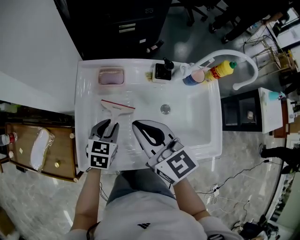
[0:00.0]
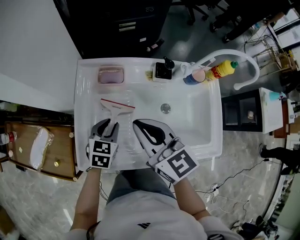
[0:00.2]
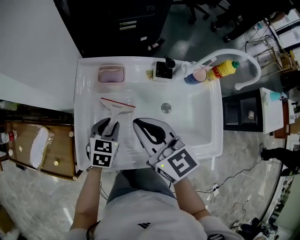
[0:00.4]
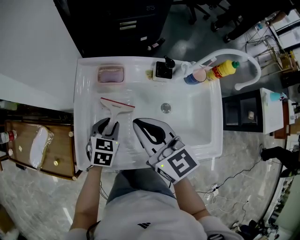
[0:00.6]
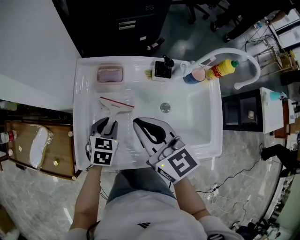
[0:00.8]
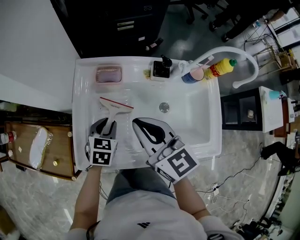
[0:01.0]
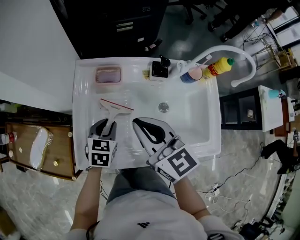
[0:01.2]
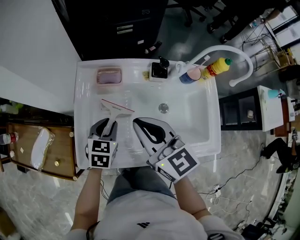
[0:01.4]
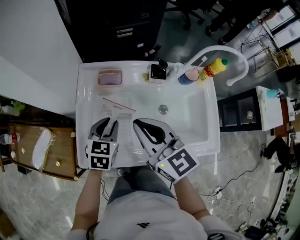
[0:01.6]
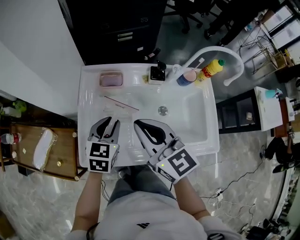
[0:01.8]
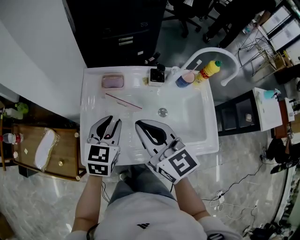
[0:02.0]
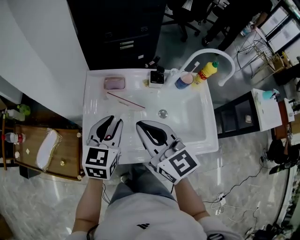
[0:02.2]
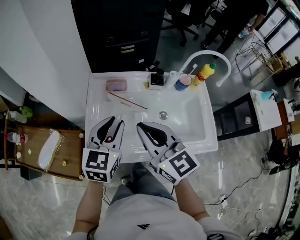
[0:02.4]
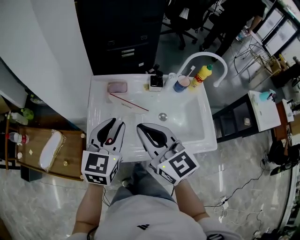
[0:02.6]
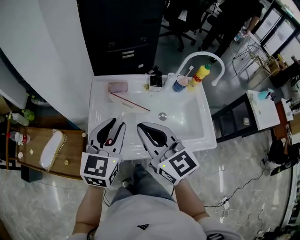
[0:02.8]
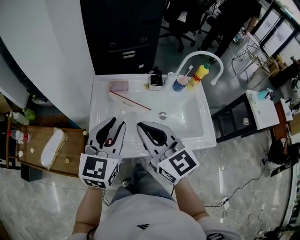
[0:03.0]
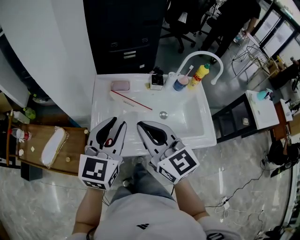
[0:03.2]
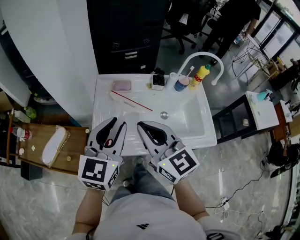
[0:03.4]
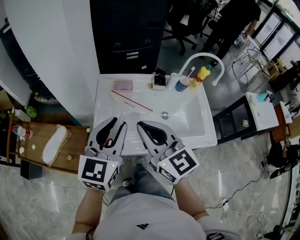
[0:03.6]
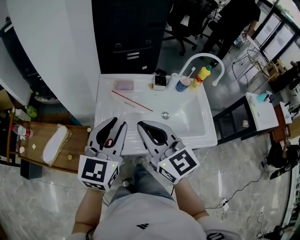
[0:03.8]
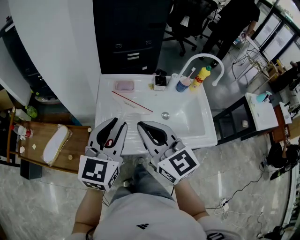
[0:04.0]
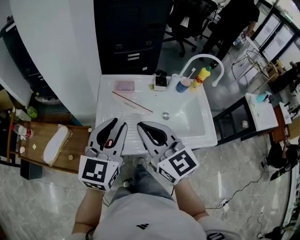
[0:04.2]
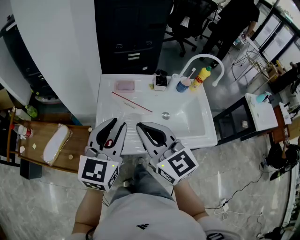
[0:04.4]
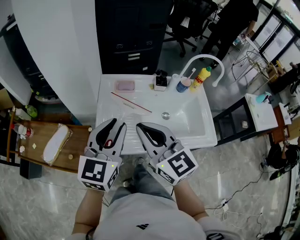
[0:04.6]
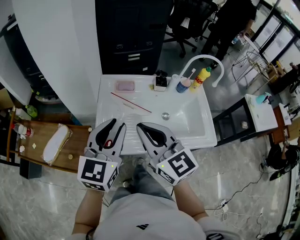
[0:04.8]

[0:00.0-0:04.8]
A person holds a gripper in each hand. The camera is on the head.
0.0 to 1.6 s: The grippers stay close to where they were, moving slightly.
1.6 to 3.2 s: The left gripper moves upward and backward, about 25 cm, and swivels roughly 30 degrees. Meanwhile the right gripper travels backward and upward by about 10 cm.
3.2 to 4.8 s: The grippers make only small movements.

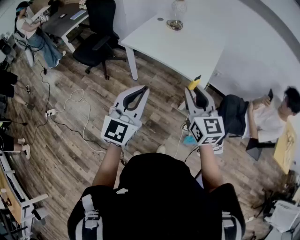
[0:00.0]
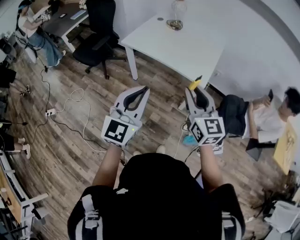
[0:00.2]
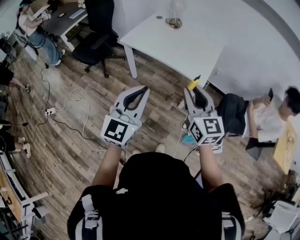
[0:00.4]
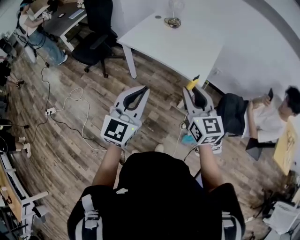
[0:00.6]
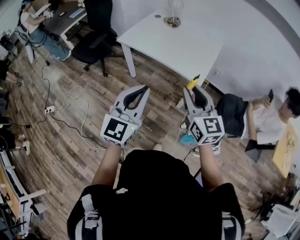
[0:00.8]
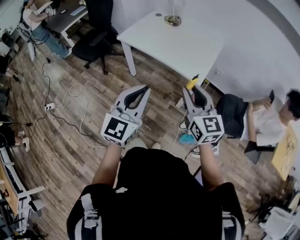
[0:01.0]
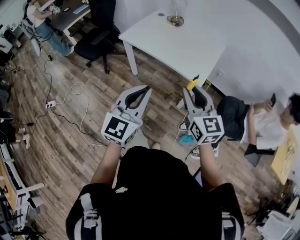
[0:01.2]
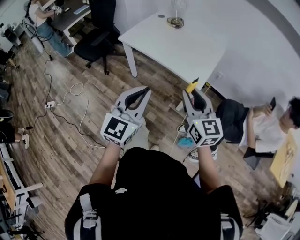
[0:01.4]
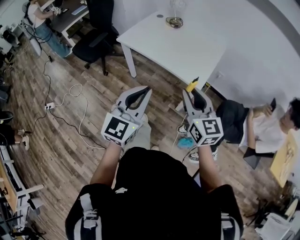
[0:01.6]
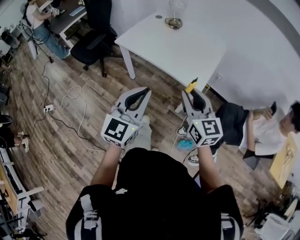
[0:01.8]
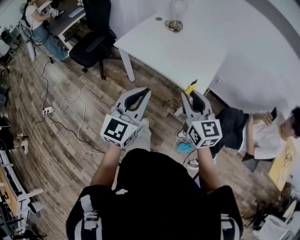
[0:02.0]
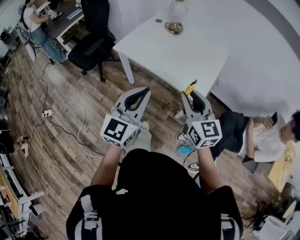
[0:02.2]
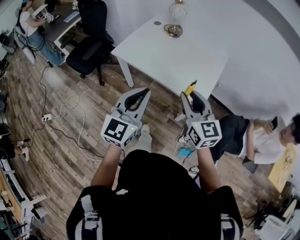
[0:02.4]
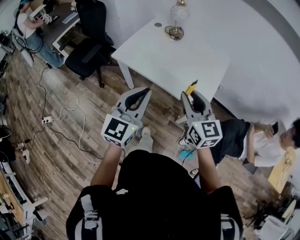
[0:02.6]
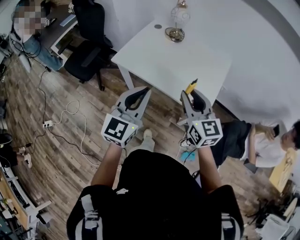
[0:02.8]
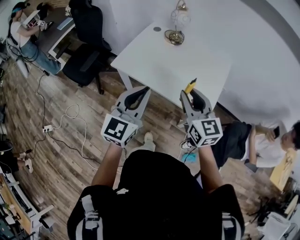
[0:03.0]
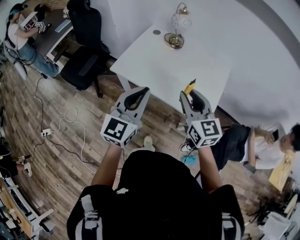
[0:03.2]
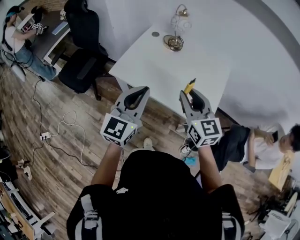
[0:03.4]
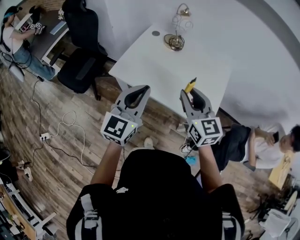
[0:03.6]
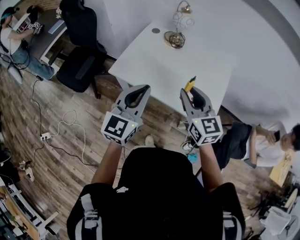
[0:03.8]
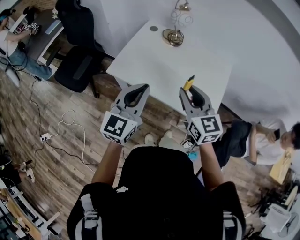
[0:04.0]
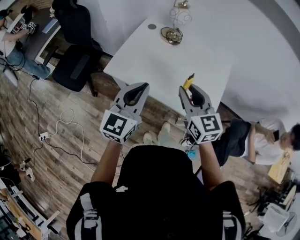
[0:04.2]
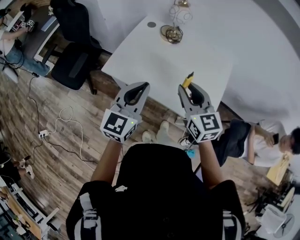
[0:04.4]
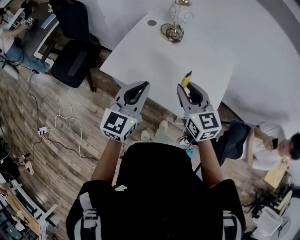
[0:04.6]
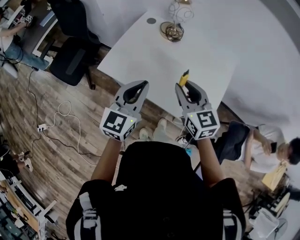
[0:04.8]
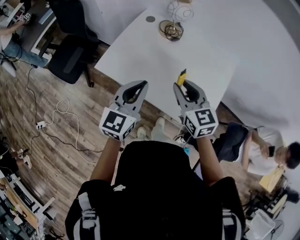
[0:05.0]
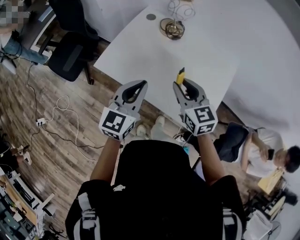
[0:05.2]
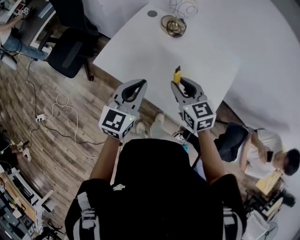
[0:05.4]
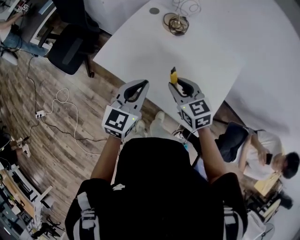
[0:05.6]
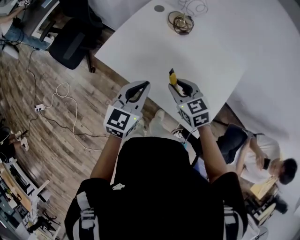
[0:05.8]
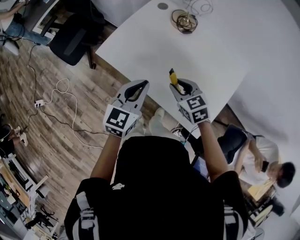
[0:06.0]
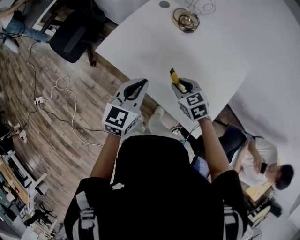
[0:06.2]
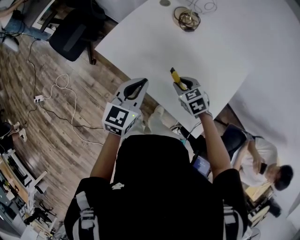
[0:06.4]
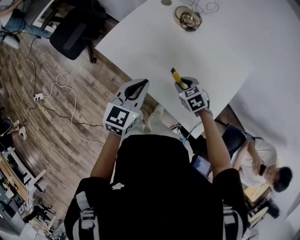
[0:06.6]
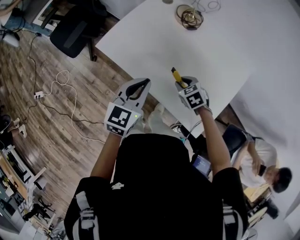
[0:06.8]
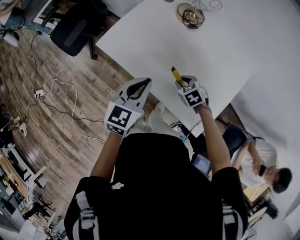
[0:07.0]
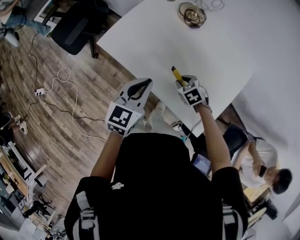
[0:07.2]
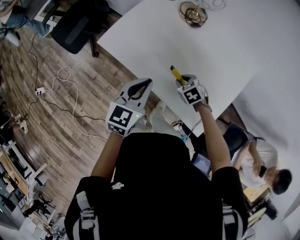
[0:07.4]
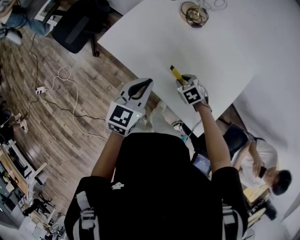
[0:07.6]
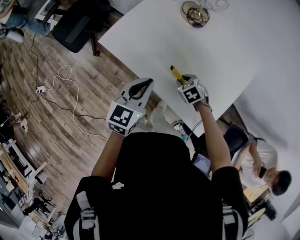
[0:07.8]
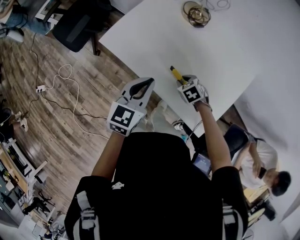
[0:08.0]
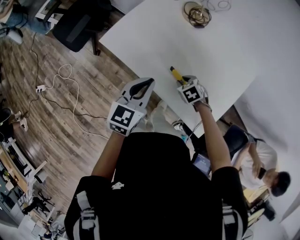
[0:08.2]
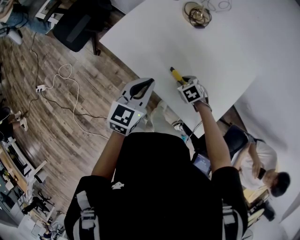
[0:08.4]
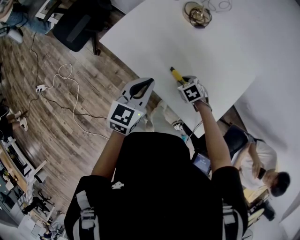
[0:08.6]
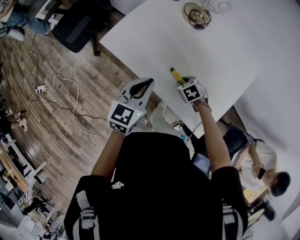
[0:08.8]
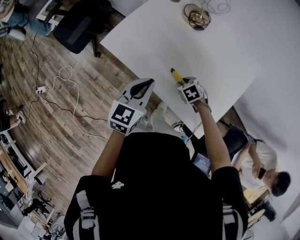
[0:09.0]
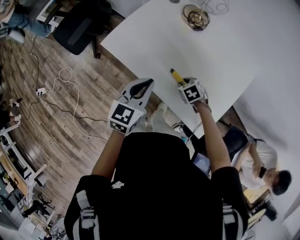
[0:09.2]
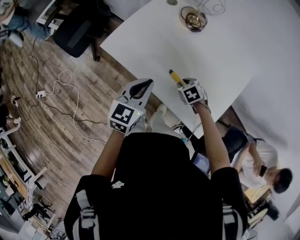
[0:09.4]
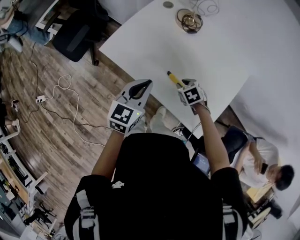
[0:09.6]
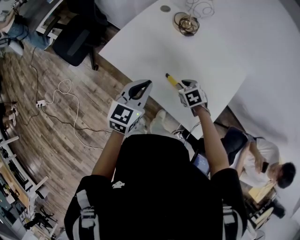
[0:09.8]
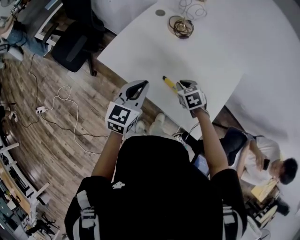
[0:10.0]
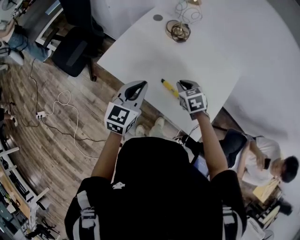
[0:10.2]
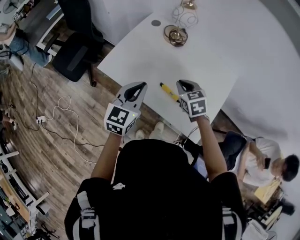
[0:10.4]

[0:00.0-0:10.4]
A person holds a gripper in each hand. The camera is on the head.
0.0 to 1.4 s: Both grippers travel together to the right, approximately 5 cm.
1.4 to 3.0 s: The two grippers go some 25 cm forward.
3.0 to 4.4 s: The two grippers go approximately 10 cm forward.
4.4 to 6.0 s: The left gripper travels downward and forward by some 10 cm, while the right gripper moves downward and forward, approximately 20 cm, and swivels roughly 40 degrees.
6.0 to 7.4 s: The right gripper heads downward, covering some 15 cm, and turns by some 20 degrees.
7.4 to 9.0 s: The grippers make only small movements.
9.0 to 10.4 s: The right gripper goes some 20 cm upward, rotates some 30 degrees, and closes up, while the left gripper moves upward, approximately 5 cm.

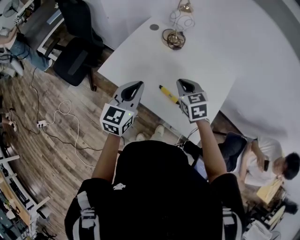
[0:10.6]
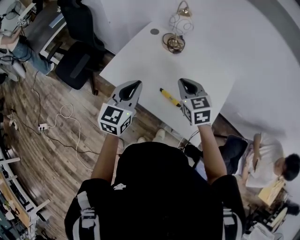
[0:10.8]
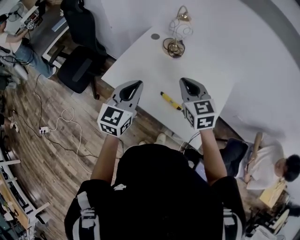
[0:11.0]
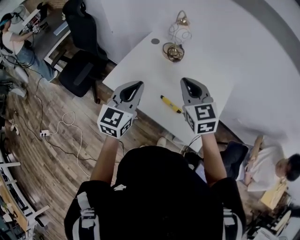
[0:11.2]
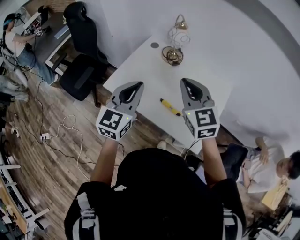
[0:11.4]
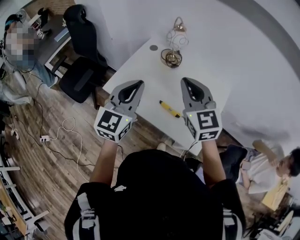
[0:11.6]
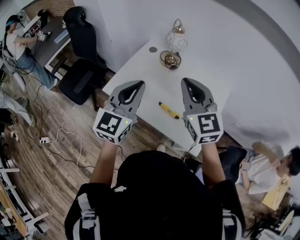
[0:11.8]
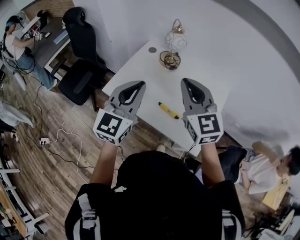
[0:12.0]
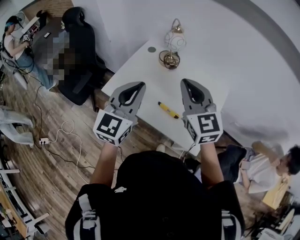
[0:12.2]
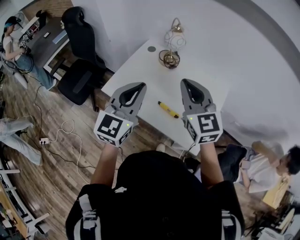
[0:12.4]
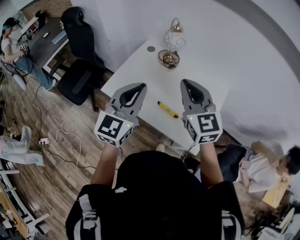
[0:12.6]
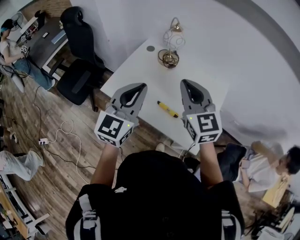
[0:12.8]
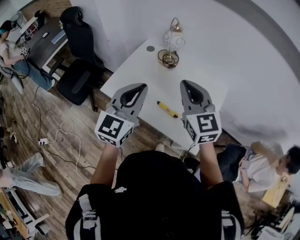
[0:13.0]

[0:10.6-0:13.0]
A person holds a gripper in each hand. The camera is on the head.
10.6 to 11.8 s: The left gripper shifts approximately 15 cm upward. Meanwhile the right gripper is displaced upward by about 20 cm, and points its fingers roughly 30 degrees further upward.
11.8 to 13.0 s: The grippers make only small movements.

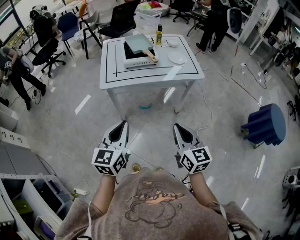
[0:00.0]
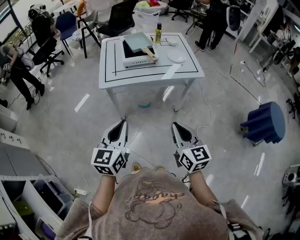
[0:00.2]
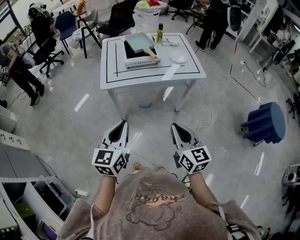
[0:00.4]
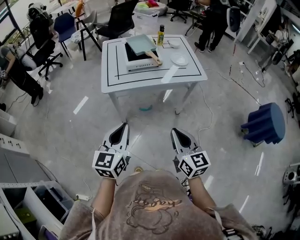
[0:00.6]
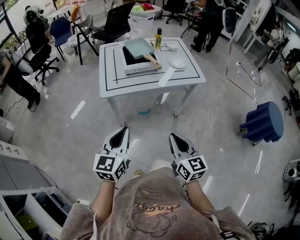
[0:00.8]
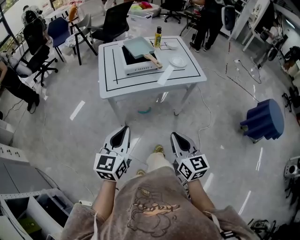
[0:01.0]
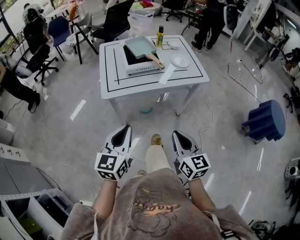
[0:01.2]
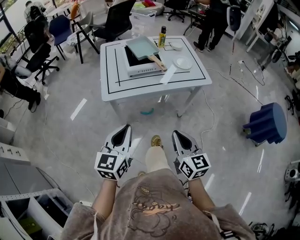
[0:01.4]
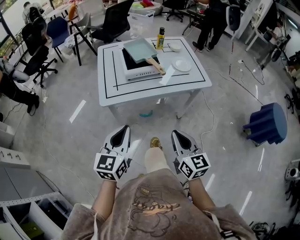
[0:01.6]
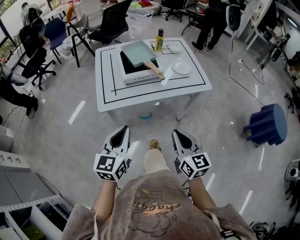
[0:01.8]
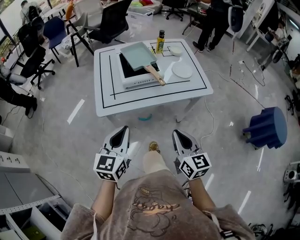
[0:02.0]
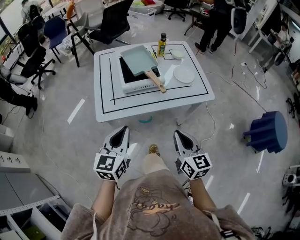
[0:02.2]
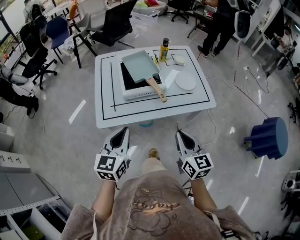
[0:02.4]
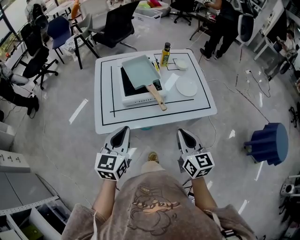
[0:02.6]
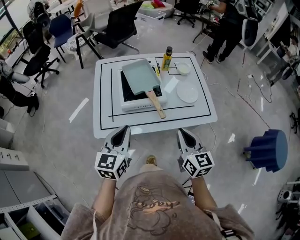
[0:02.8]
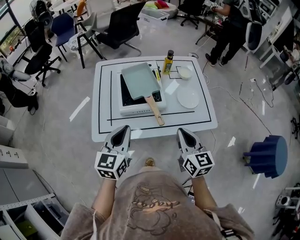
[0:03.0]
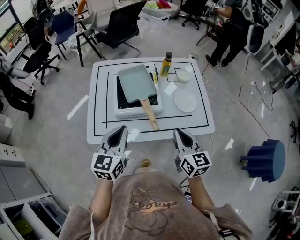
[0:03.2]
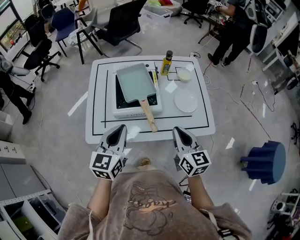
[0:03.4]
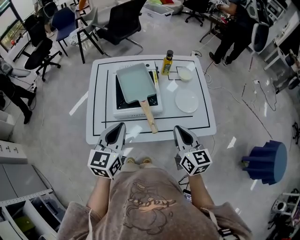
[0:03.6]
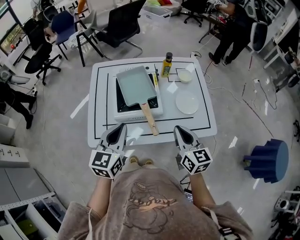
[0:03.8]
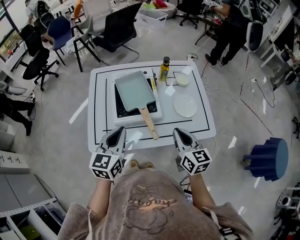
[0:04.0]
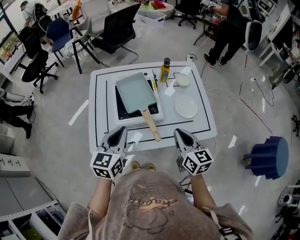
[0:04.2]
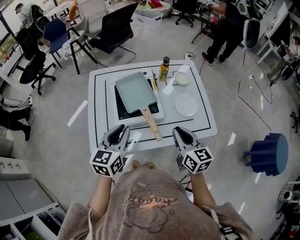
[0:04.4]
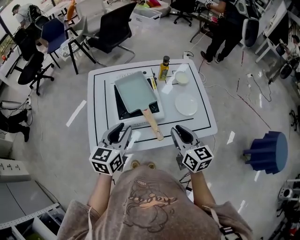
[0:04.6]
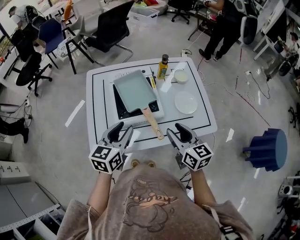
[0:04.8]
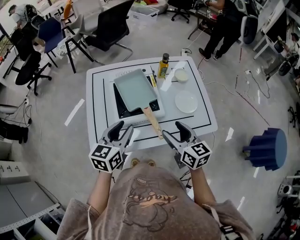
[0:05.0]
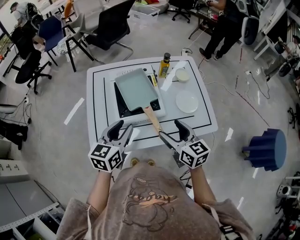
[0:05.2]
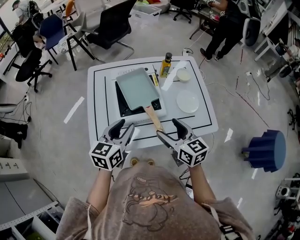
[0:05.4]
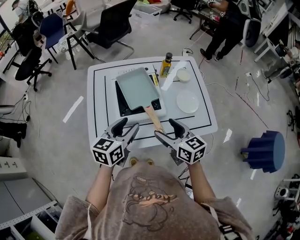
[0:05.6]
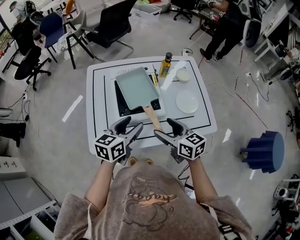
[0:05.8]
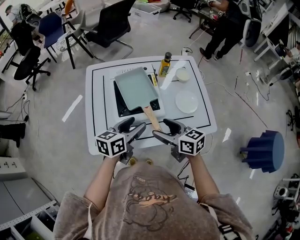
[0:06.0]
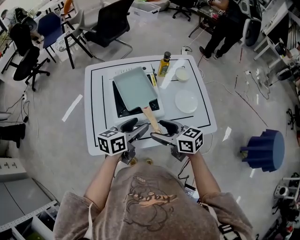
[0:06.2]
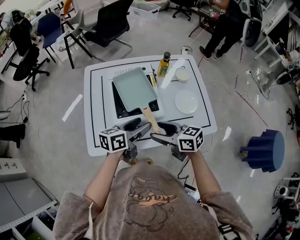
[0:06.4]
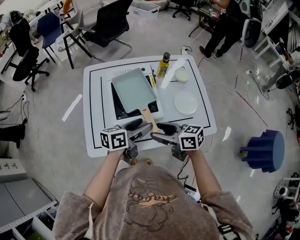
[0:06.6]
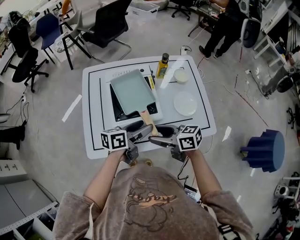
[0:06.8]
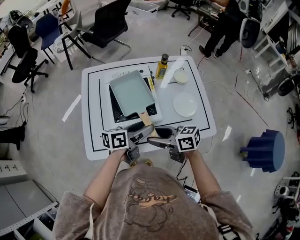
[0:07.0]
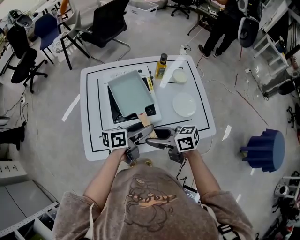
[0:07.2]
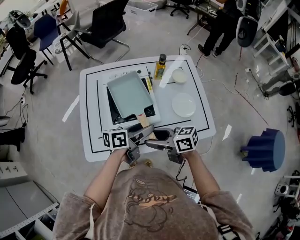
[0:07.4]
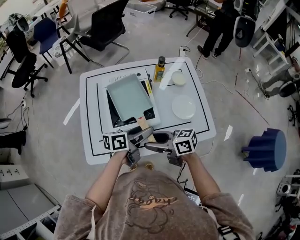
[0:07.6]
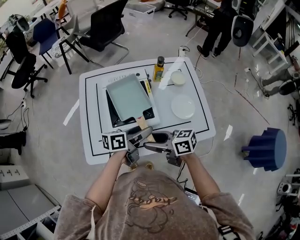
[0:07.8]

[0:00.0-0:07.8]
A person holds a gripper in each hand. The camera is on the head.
0.0 to 1.6 s: The grippers both shift forward and to the left by roughly 15 cm.
1.6 to 3.2 s: Both grippers move forward, some 30 cm.
3.2 to 4.6 s: The left gripper travels forward by approximately 5 cm, and opens up. The right gripper changes place by about 5 cm.
4.6 to 6.2 s: The right gripper moves to the left, about 10 cm, turns by approximately 30 degrees, and opens. Meanwhile the left gripper moves to the right and downward, roughly 10 cm, turns by some 30 degrees, and opens.
6.2 to 7.8 s: The left gripper changes place by about 5 cm. The right gripper changes its angle by about 20 degrees.
